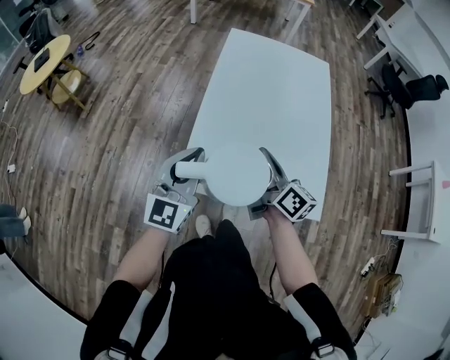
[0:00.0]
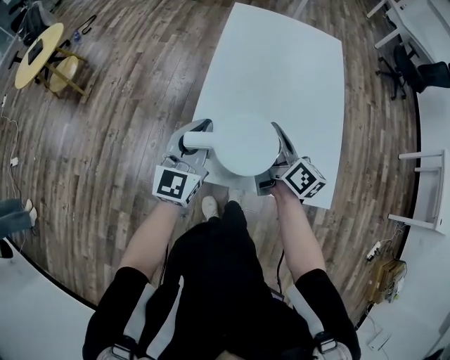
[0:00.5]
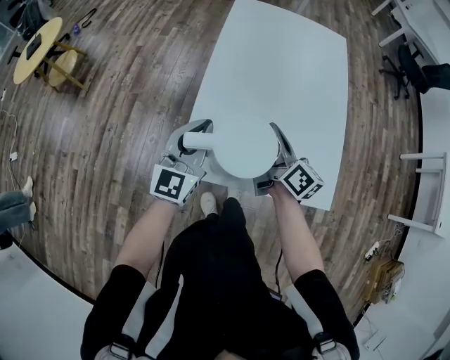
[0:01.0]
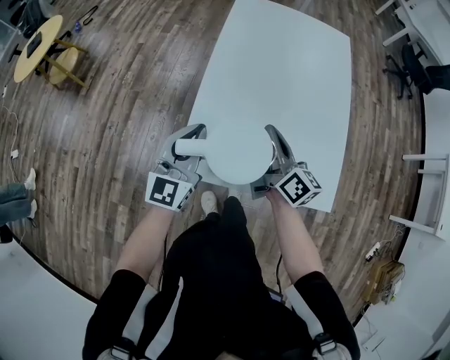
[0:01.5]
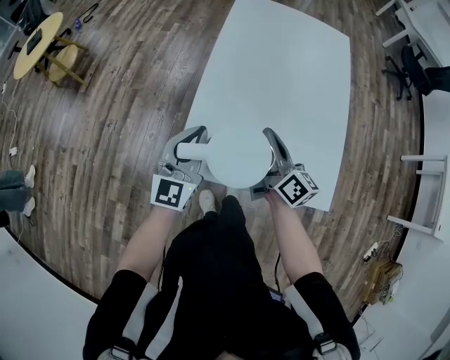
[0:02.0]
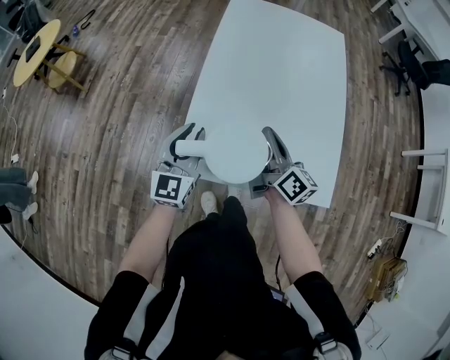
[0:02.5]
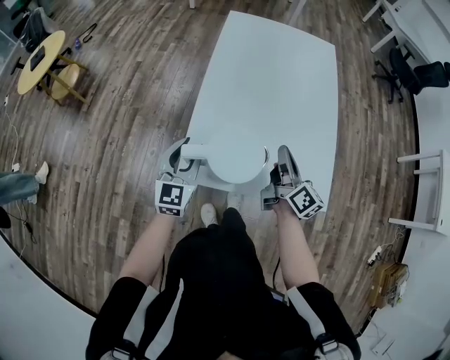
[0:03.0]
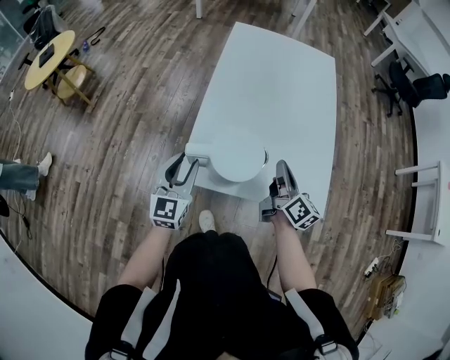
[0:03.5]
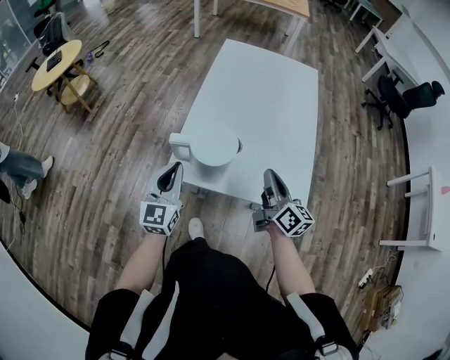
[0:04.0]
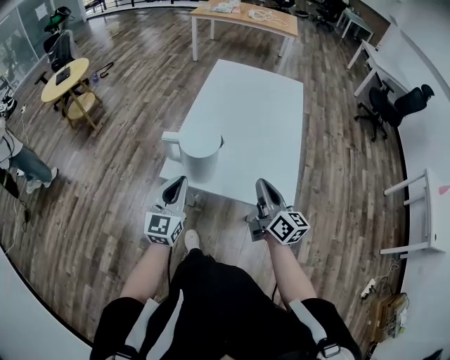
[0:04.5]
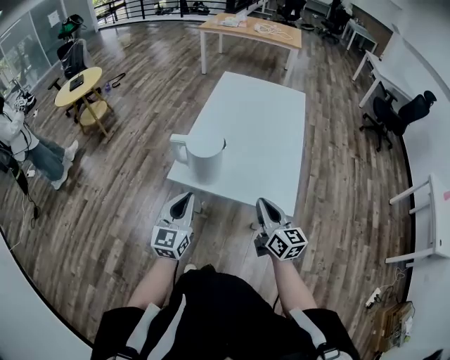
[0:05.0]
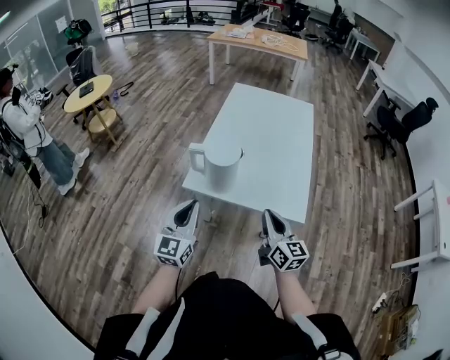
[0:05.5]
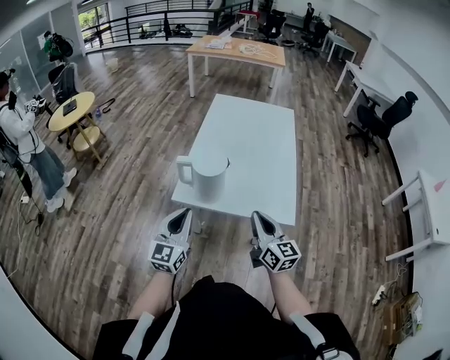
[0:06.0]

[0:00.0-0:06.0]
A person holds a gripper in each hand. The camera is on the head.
0:00.0 to 0:02.0: The left gripper travels downward by about 10 cm.
0:02.0 to 0:04.0: The left gripper shifts by approximately 10 cm, and opens, then closes once more.
0:04.0 to 0:06.0: The left gripper shifts by approximately 15 cm.

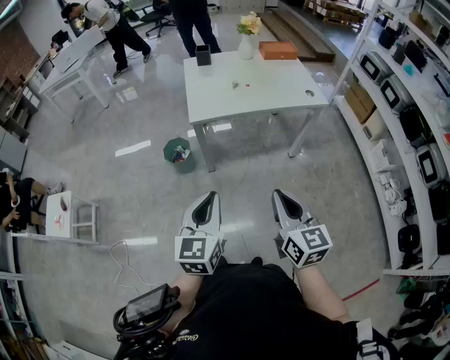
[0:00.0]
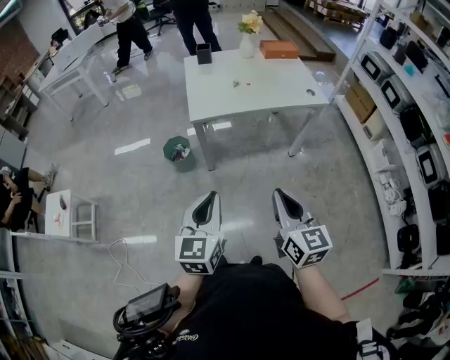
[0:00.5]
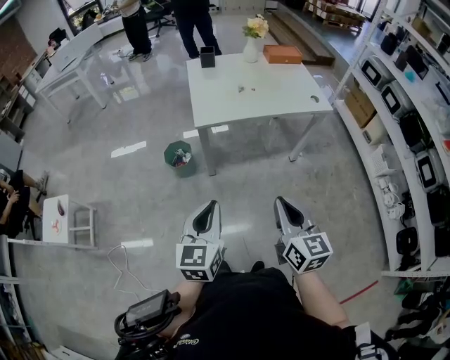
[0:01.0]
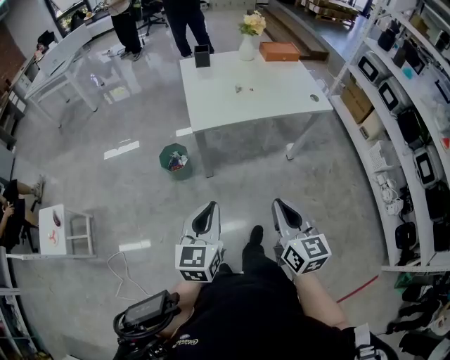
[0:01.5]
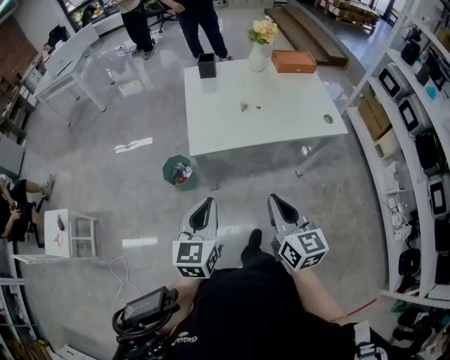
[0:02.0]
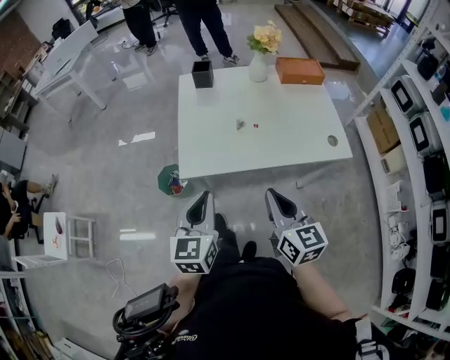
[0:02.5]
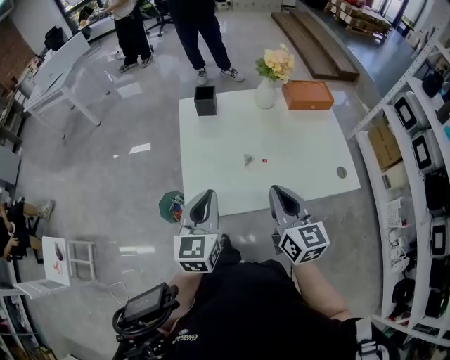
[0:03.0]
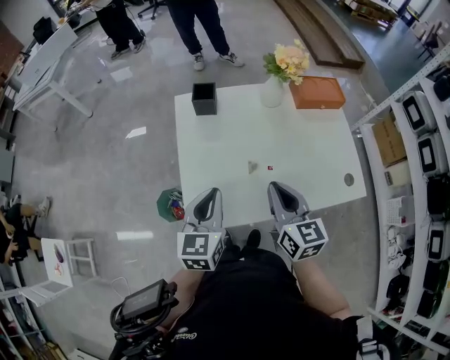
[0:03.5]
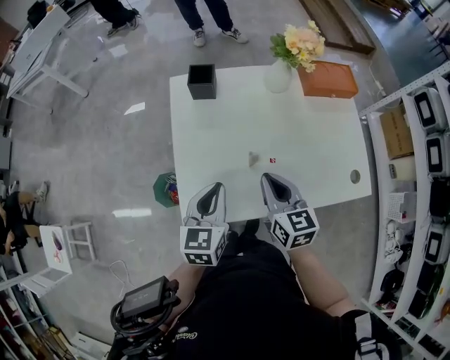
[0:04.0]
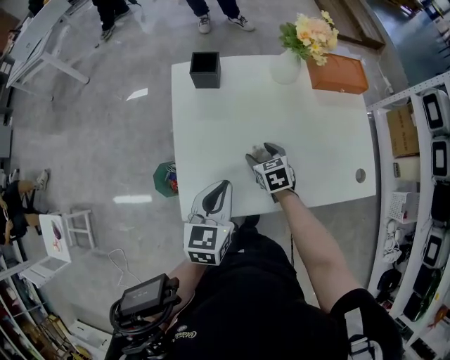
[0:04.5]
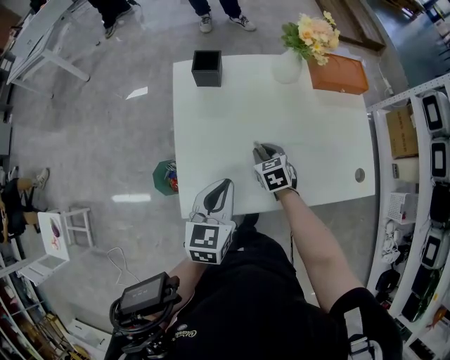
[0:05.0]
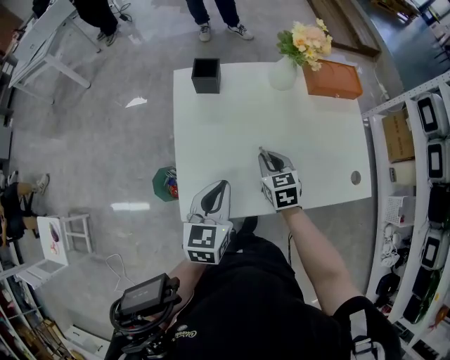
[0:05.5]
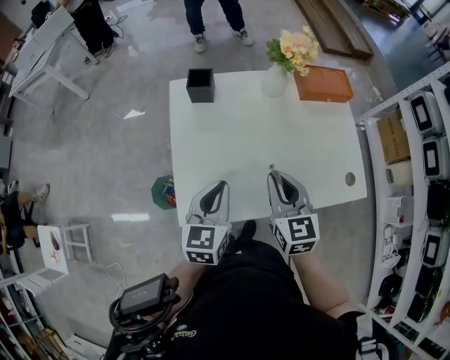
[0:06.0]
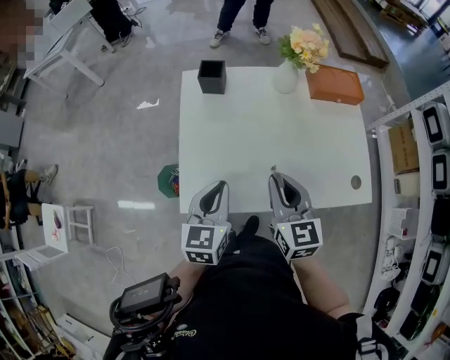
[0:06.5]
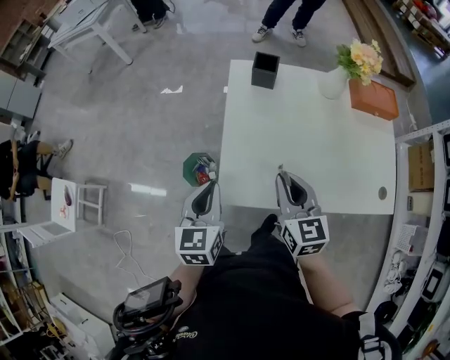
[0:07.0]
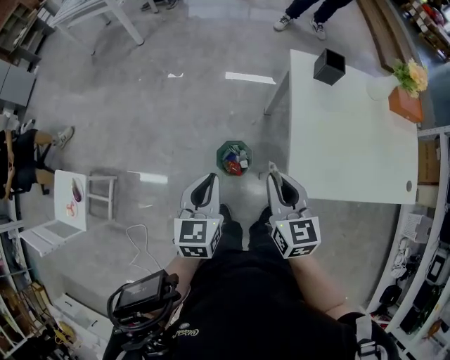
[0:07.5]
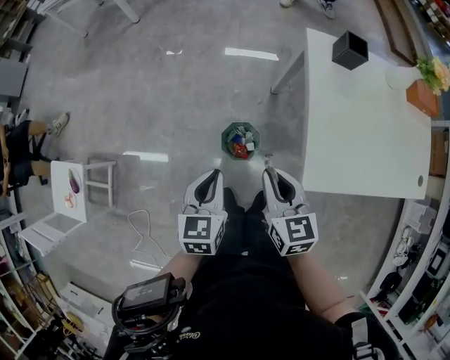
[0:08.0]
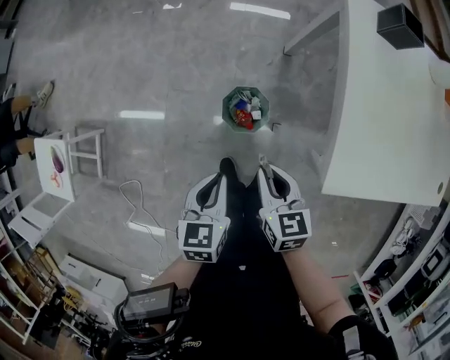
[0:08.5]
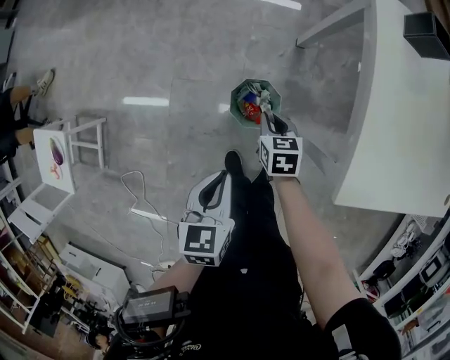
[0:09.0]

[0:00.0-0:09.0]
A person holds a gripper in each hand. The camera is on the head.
0:00.0 to 0:02.0: Both grippers travel together forward, approximately 20 cm.
0:02.0 to 0:04.5: The left gripper moves forward, some 40 cm, while the right gripper is displaced forward and downward by roughly 60 cm, angles its fingers downward, by some 40 degrees, and opens.
0:04.5 to 0:07.0: The right gripper is displaced upward, backward and to the left by about 25 cm, tips its fingers upward by approximately 30 degrees, and closes. The left gripper shifts roughly 15 cm to the left.
0:07.0 to 0:09.0: The left gripper moves to the left and downward, about 35 cm, and rotates about 20 degrees, while the right gripper is displaced downward and to the left by roughly 50 cm, and tilts its fingers roughly 30 degrees downward.

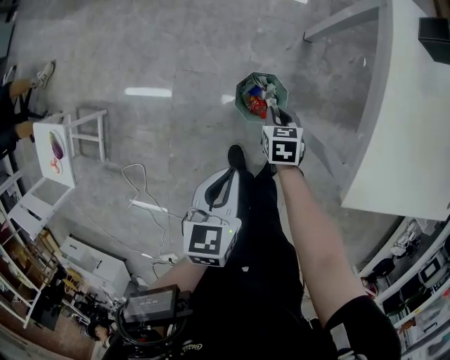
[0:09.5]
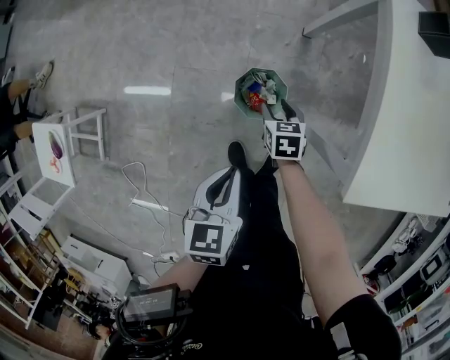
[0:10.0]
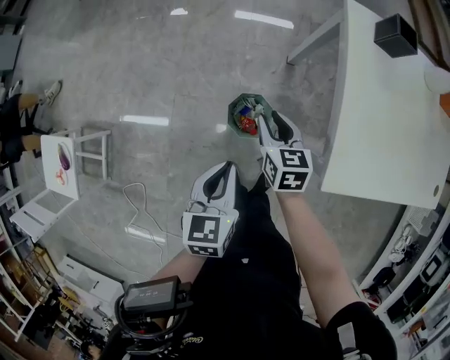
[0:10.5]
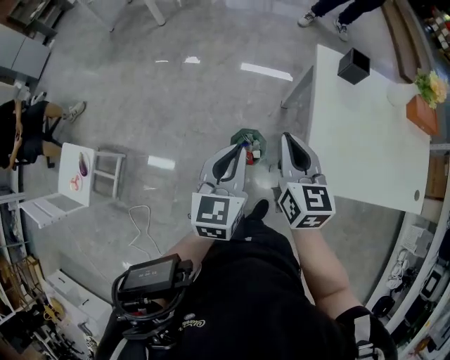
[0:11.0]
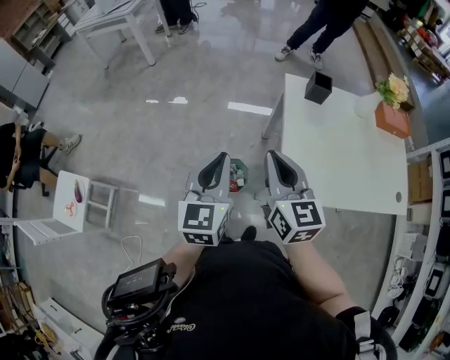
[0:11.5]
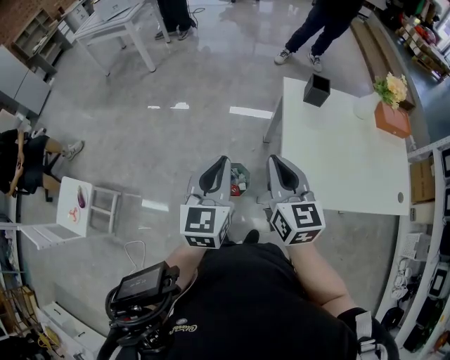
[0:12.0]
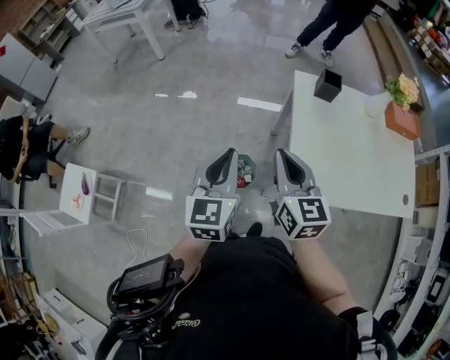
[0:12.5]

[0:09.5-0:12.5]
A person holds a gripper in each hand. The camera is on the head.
0:09.5 to 0:11.0: The left gripper shifts some 25 cm upward, and swivels roughly 30 degrees. The right gripper is displaced upward by approximately 50 cm, angles its fingers upward, by approximately 40 degrees, and opens, then closes once more.
0:11.0 to 0:12.5: The two grippers go approximately 5 cm upward.

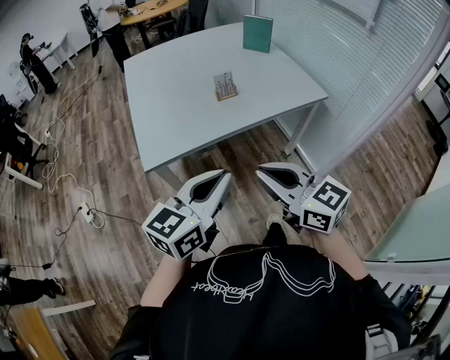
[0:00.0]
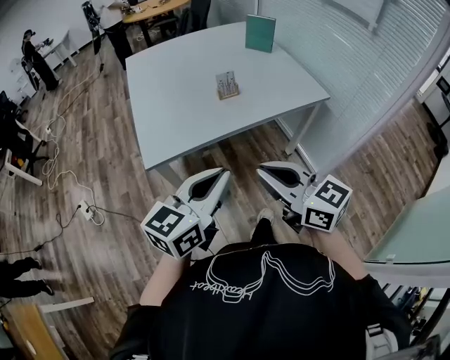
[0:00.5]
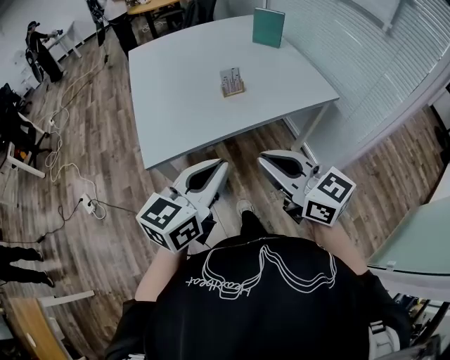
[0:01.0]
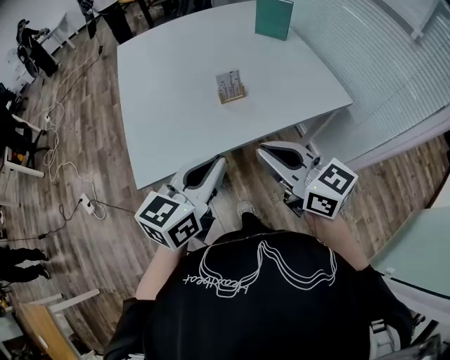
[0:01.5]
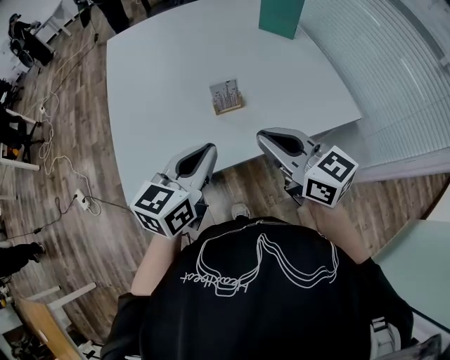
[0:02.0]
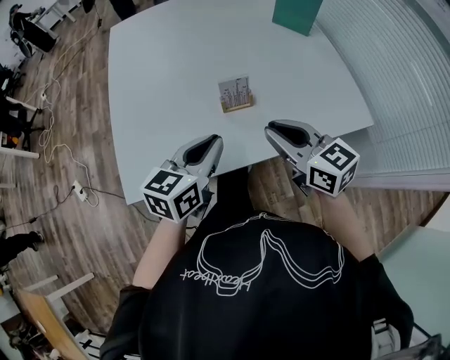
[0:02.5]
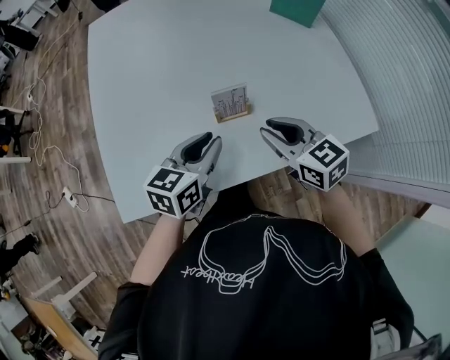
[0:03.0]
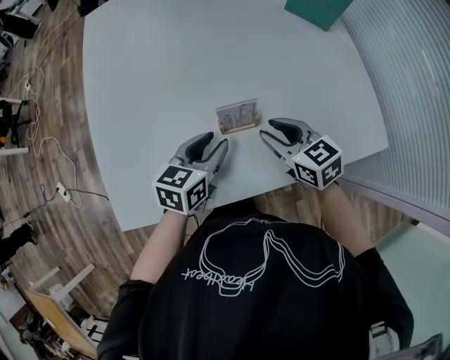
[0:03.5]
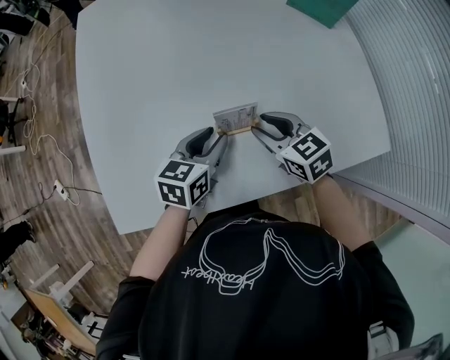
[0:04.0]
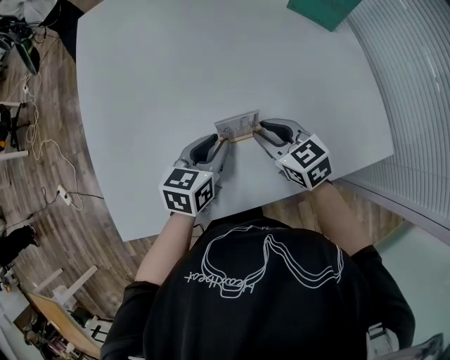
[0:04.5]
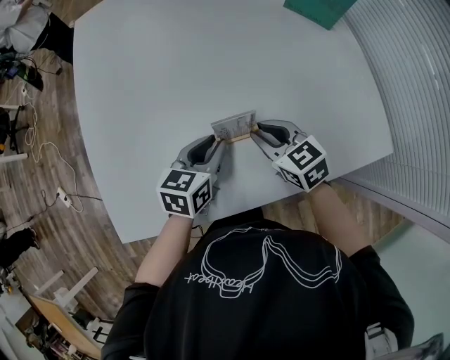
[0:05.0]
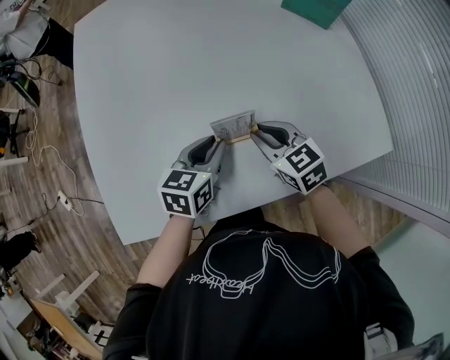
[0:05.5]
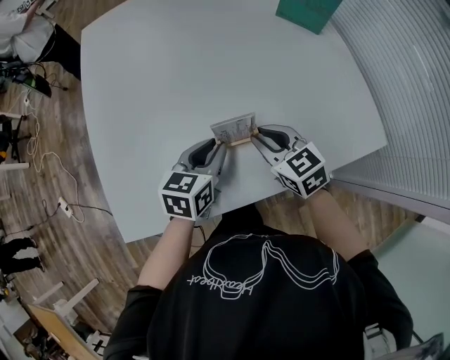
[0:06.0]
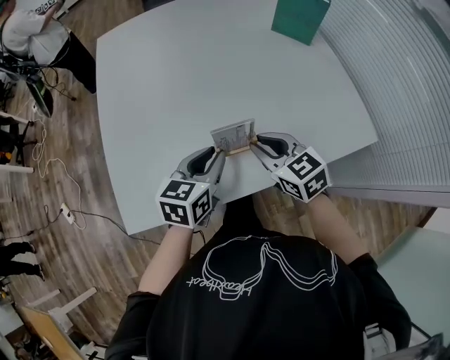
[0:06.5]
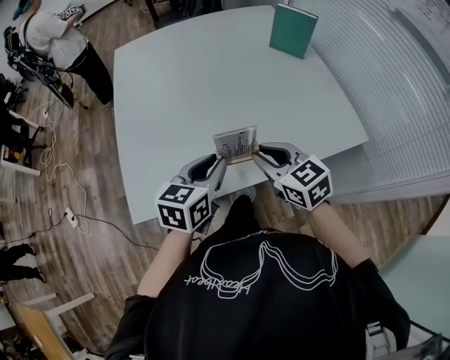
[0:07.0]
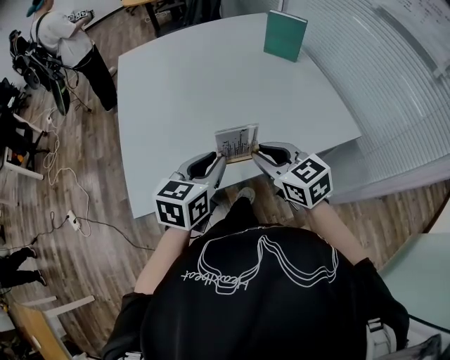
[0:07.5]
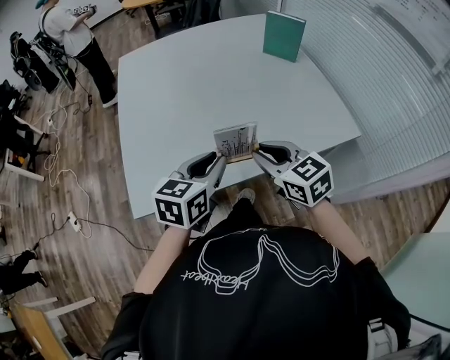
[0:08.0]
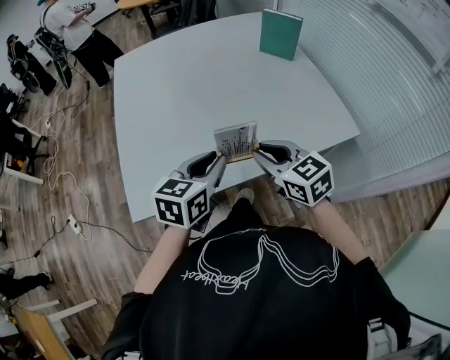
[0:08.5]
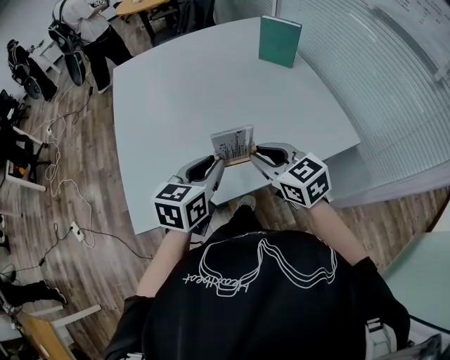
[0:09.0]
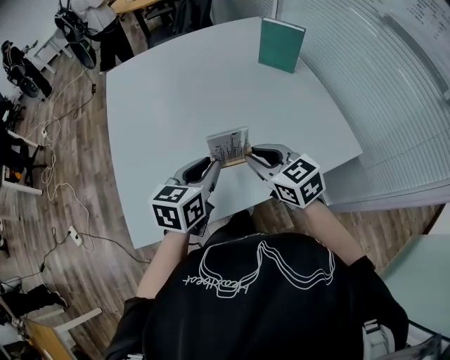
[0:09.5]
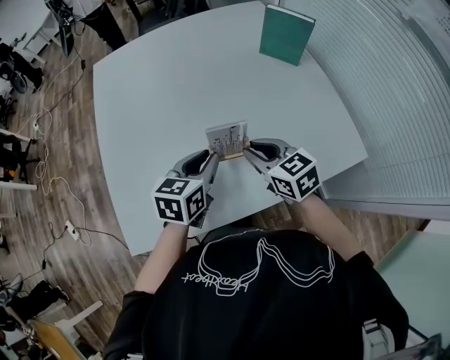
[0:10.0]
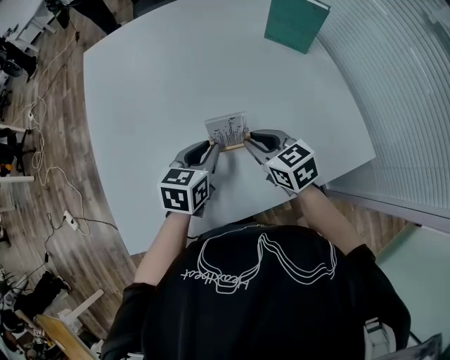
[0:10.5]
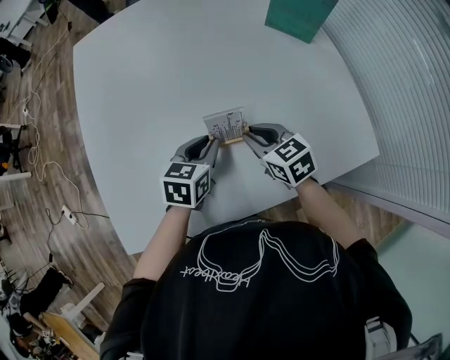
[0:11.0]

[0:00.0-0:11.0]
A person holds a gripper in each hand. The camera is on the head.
0:00.0 to 0:02.0: The two grippers go roughly 30 cm forward.
0:02.0 to 0:03.5: Both grippers travel together downward and forward, about 25 cm. The left gripper opens up. Meanwhile the right gripper changes its angle by approximately 20 degrees, and opens.
0:03.5 to 0:05.5: The grippers make only small movements.
0:05.5 to 0:07.5: The grippers both shift backward and upward by roughly 25 cm.
0:07.5 to 0:09.0: There are only small adjustments of the grippers.
0:09.0 to 0:11.0: Both grippers move forward and downward, approximately 20 cm.
